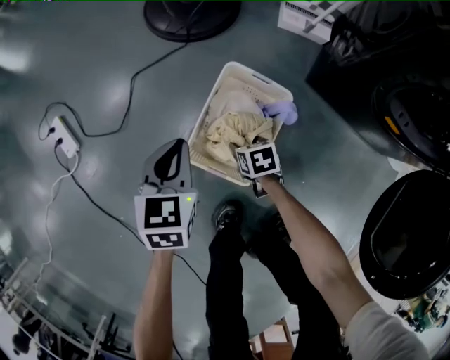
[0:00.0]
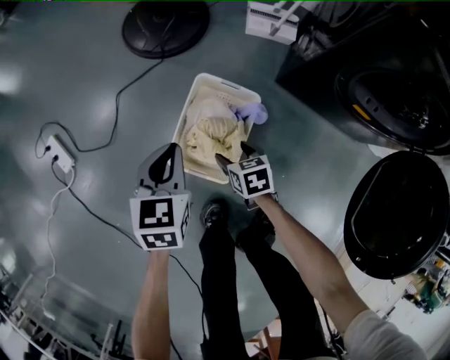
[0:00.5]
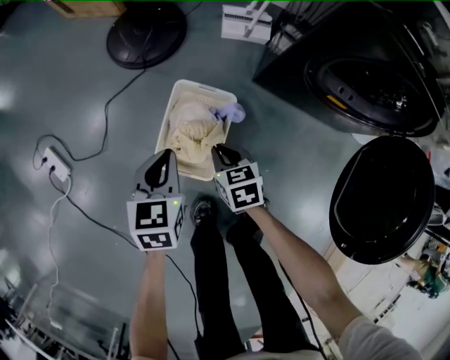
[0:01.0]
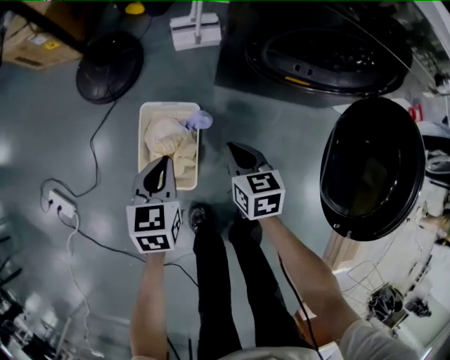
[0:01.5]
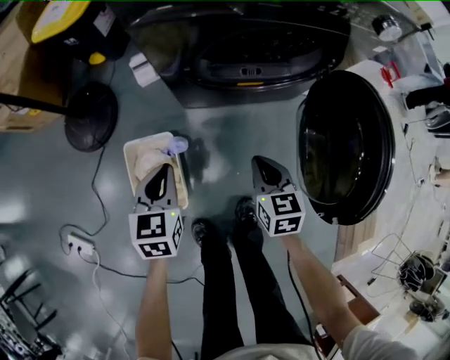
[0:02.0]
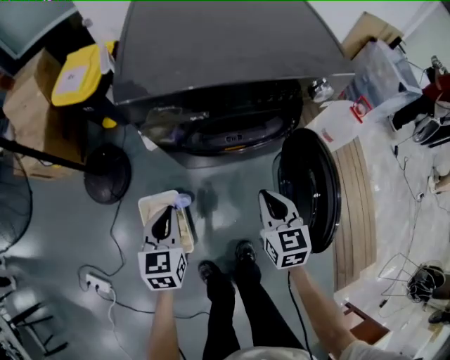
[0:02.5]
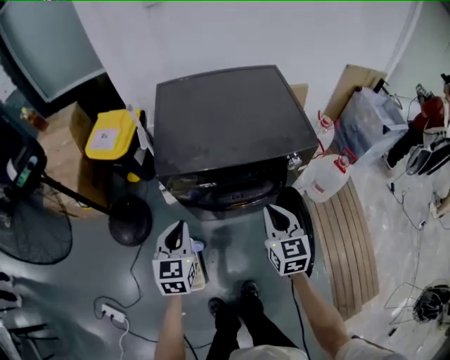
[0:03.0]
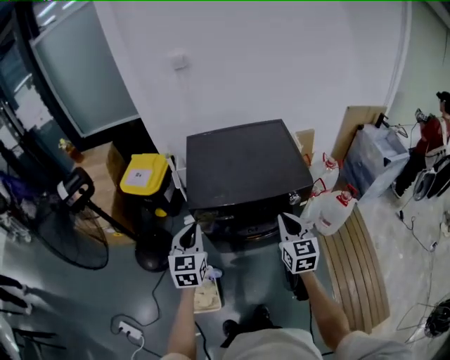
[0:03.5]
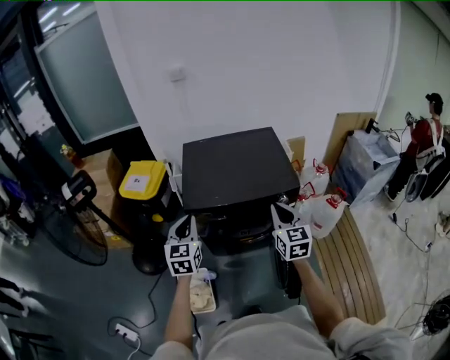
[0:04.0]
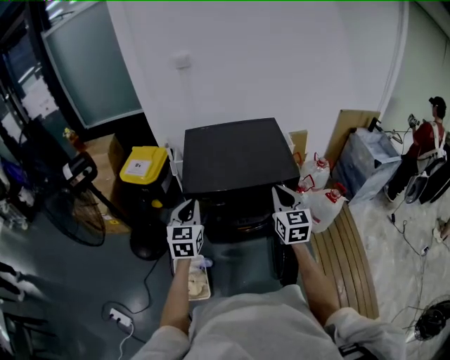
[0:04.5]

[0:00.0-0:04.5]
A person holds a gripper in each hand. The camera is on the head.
0:00.0 to 0:02.0: The right gripper shifts by roughly 50 cm, and turns by approximately 50 degrees. The left gripper ends up roughly 40 cm from where it was, and turns by some 30 degrees.
0:02.0 to 0:04.5: Both grippers move upward, some 60 cm. The right gripper tilts its fingers some 30 degrees upward. Meanwhile the left gripper rotates some 30 degrees.

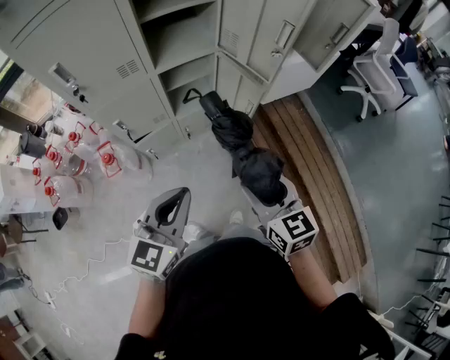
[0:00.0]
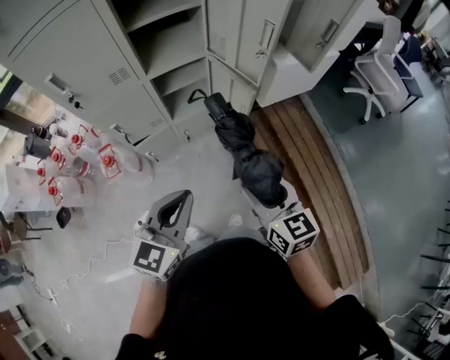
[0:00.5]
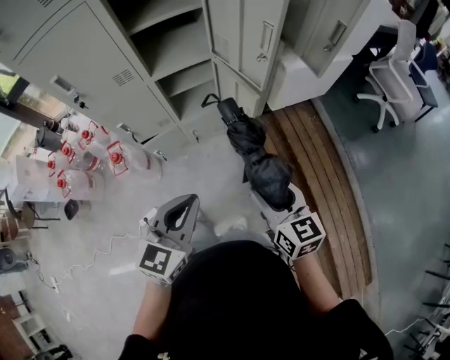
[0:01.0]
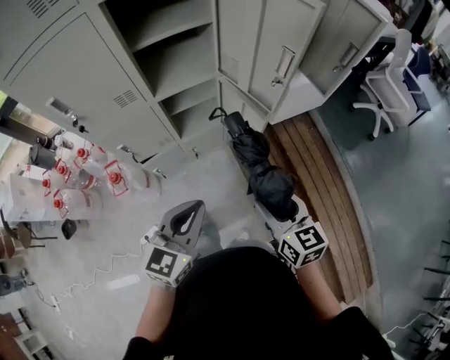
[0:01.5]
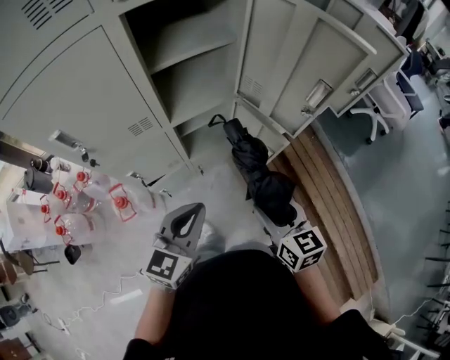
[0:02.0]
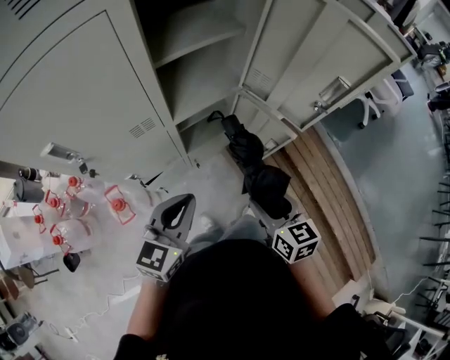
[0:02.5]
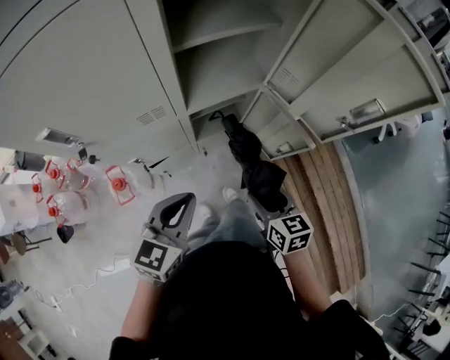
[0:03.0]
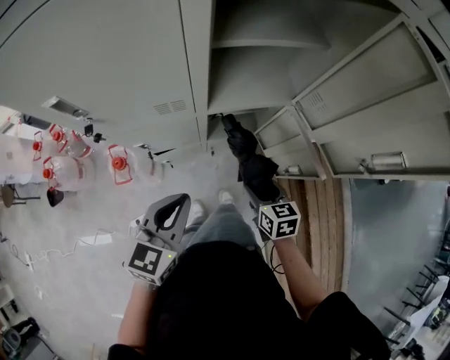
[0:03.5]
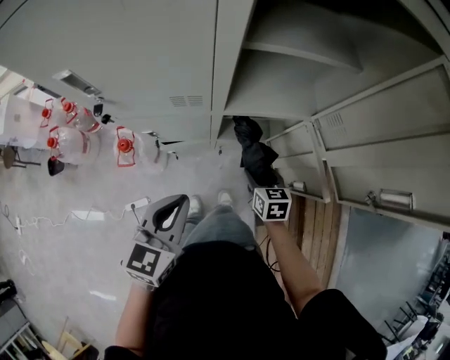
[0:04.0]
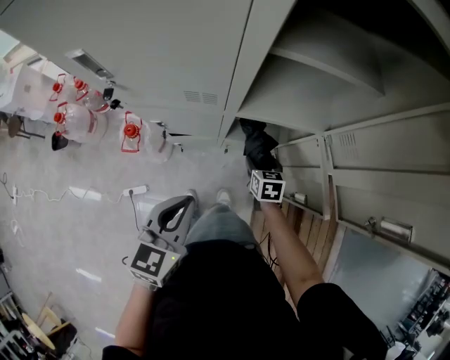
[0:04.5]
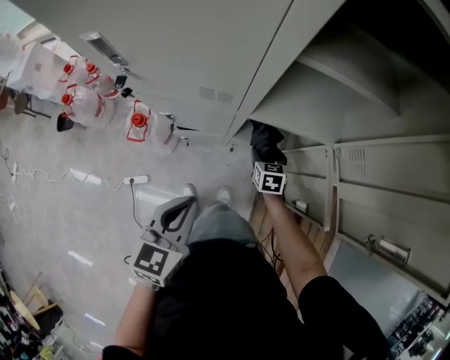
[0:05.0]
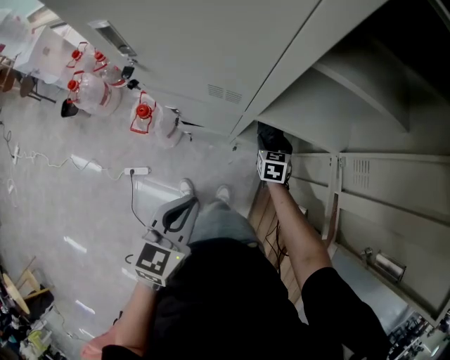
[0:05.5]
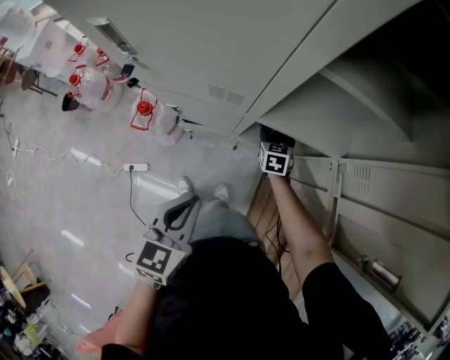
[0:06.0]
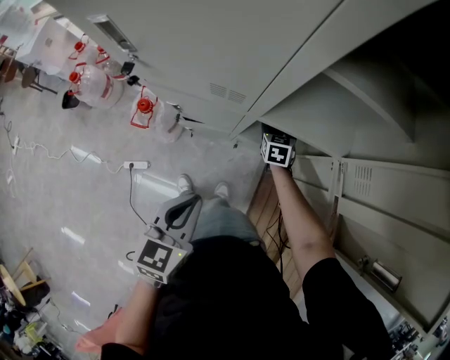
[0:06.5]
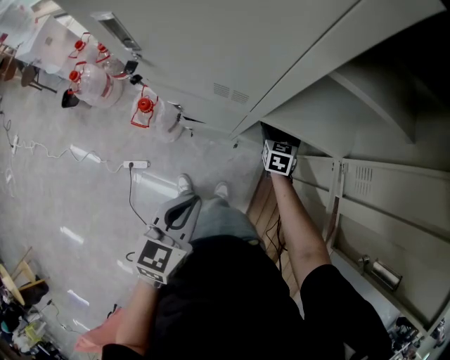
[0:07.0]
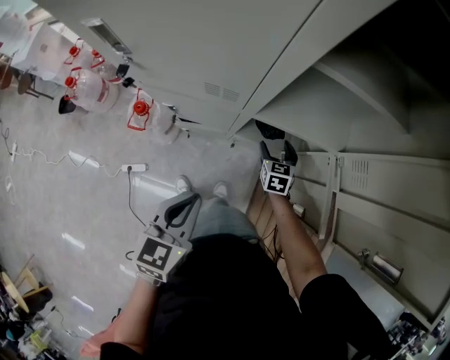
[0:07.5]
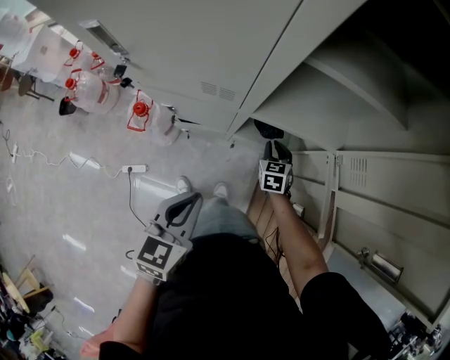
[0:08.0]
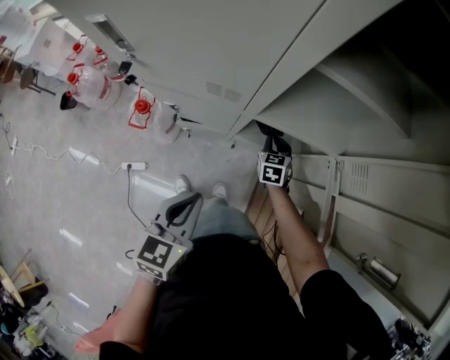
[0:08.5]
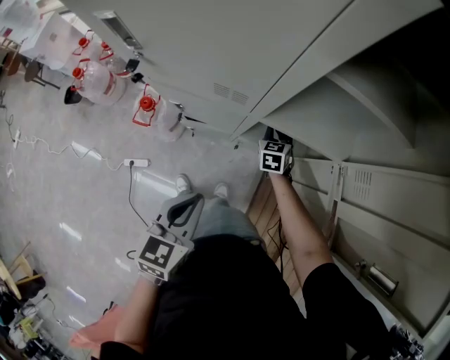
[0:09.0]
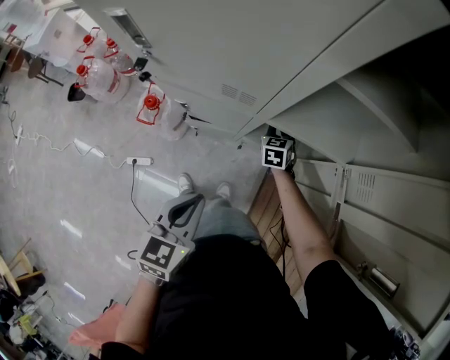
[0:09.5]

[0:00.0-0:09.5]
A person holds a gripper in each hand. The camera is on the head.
0:00.0 to 0:02.0: Both grippers travel together forward, approximately 15 cm.
0:02.0 to 0:04.0: The left gripper ends up about 15 cm from where it was, and swivels some 30 degrees; the right gripper heads downward, covering about 25 cm, and turns by approximately 30 degrees.
0:04.0 to 0:05.5: The right gripper moves forward and downward, roughly 15 cm.
0:05.5 to 0:07.5: The right gripper moves about 5 cm forward and comes back.
0:07.5 to 0:09.5: The right gripper goes approximately 10 cm forward and to the left, and closes its fingers.

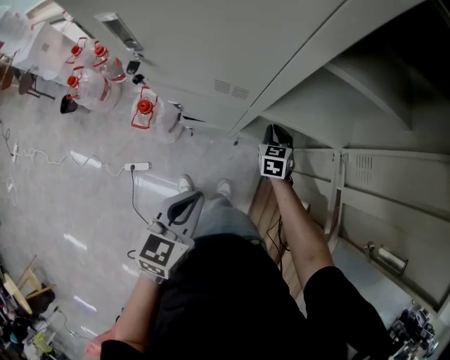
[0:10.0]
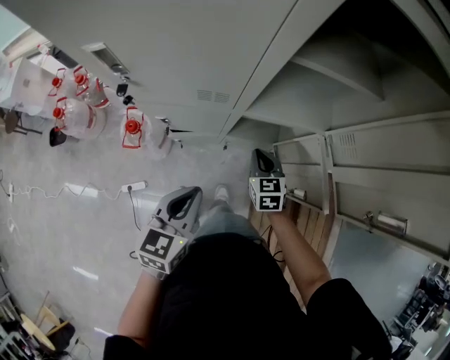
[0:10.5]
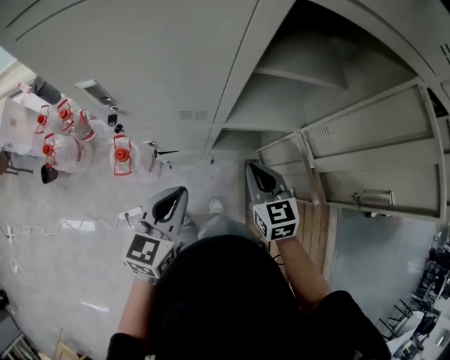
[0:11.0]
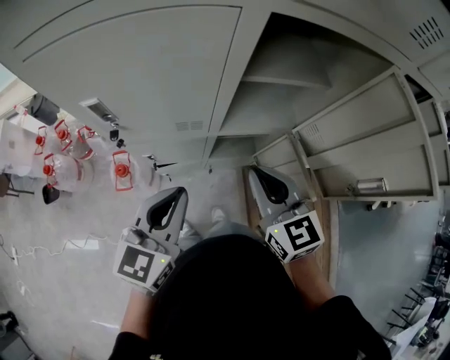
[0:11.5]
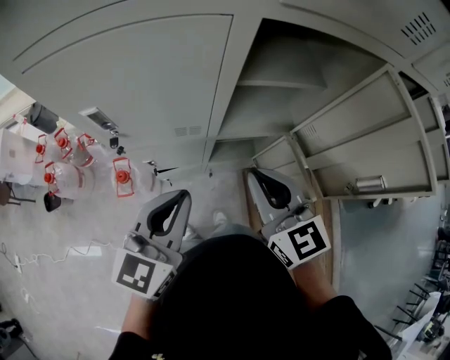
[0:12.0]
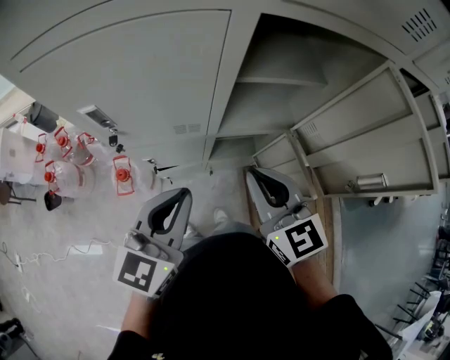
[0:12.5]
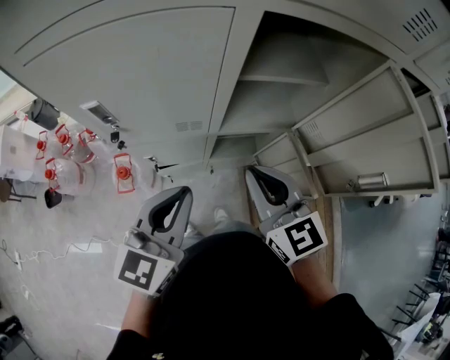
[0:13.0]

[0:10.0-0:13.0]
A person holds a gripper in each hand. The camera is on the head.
0:10.0 to 0:11.5: The right gripper goes roughly 40 cm upward and backward, and turns by some 20 degrees. Meanwhile the left gripper goes roughly 15 cm upward, and swivels roughly 20 degrees.
0:11.5 to 0:13.0: There are only small adjustments of the grippers.

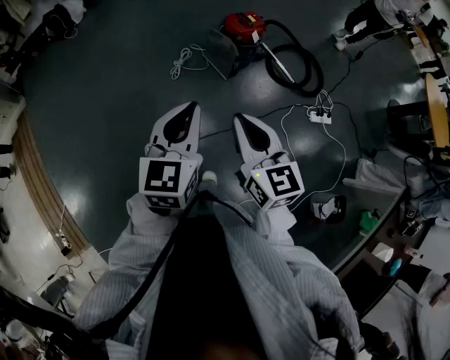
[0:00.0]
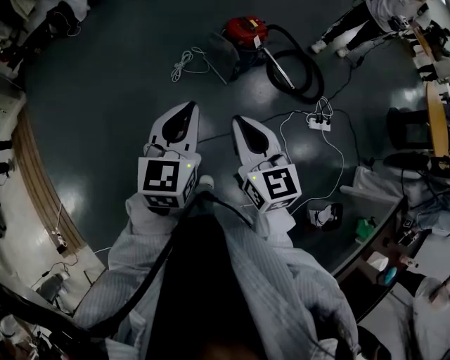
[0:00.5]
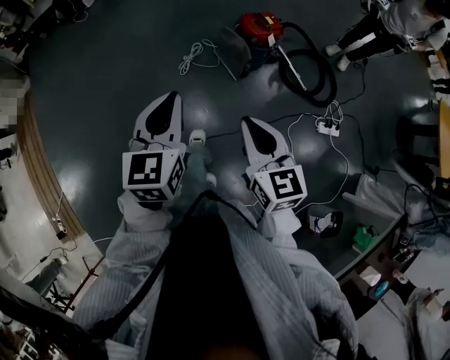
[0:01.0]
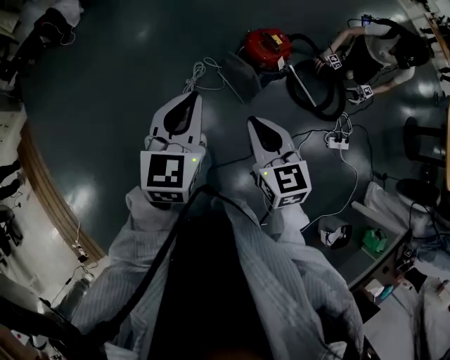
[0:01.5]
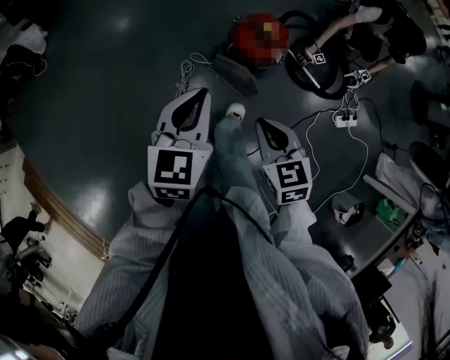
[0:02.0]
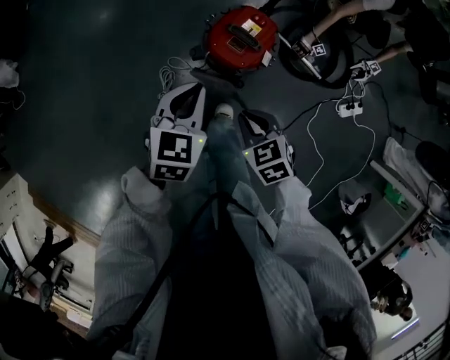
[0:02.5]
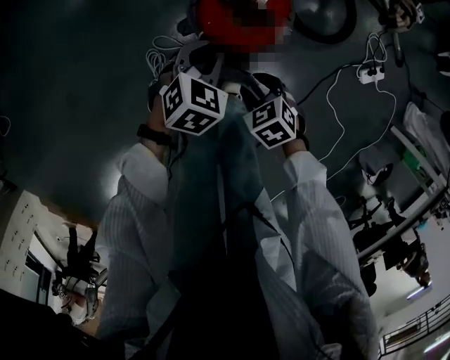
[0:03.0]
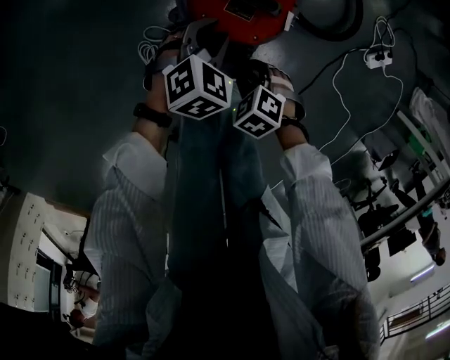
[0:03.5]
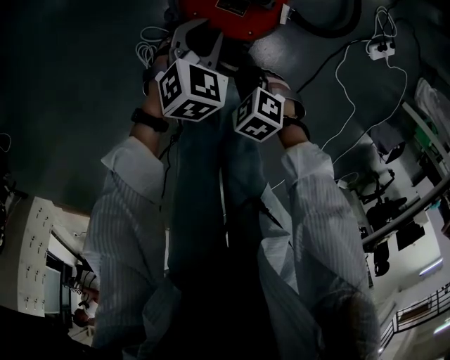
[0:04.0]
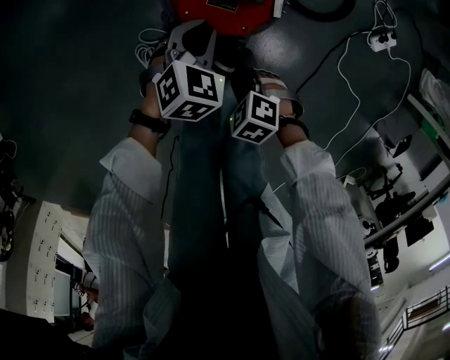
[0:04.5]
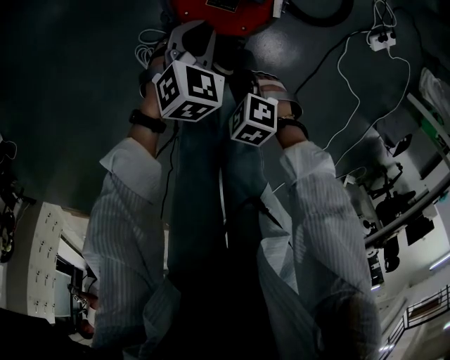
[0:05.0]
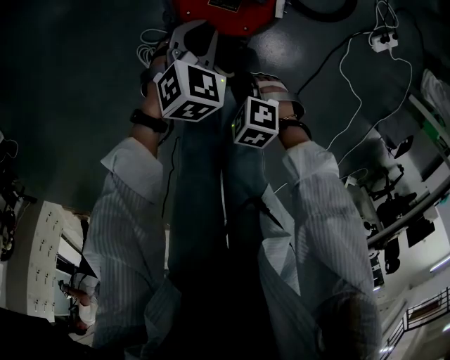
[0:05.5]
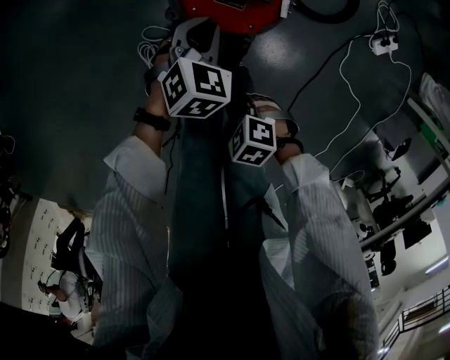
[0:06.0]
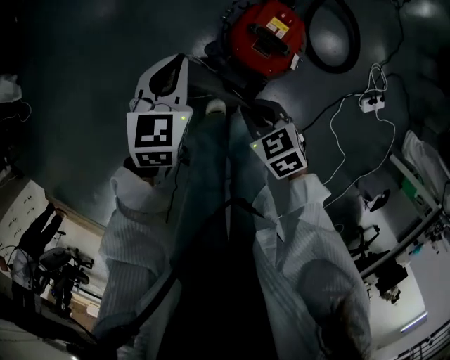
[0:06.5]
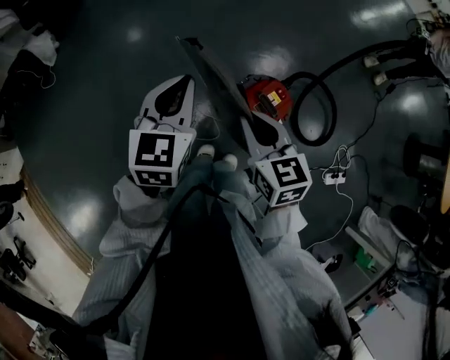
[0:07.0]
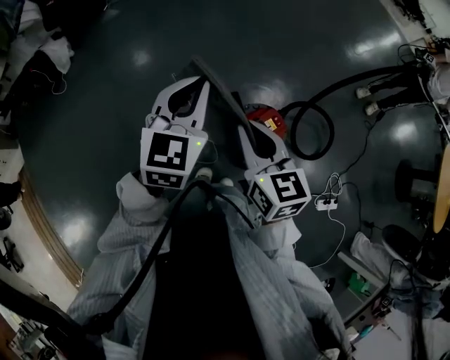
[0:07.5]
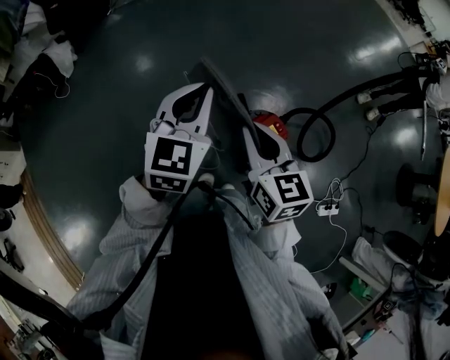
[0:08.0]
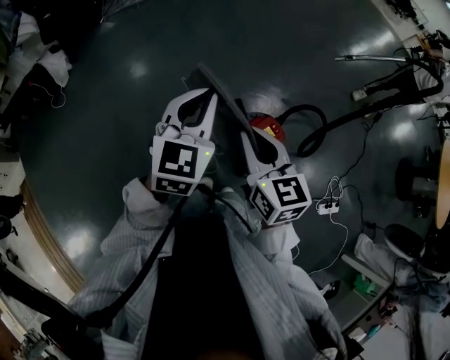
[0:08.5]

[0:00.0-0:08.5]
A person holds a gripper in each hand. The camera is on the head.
0:00.0 to 0:02.0: The pair of grippers is taken forward, some 50 cm. The right gripper goes some 20 cm downward, and swivels roughly 30 degrees.
0:02.0 to 0:04.0: The grippers both shift downward by roughly 50 cm. The right gripper points its fingers about 40 degrees further downward, and opens and closes again, while the left gripper swivels roughly 50 degrees, and opens its fingers.
0:04.0 to 0:06.5: Both grippers travel together upward, about 20 cm. The left gripper changes its angle by about 40 degrees, and closes; the right gripper swivels some 30 degrees.
0:06.5 to 0:08.5: Both grippers travel together upward, roughly 40 cm. The left gripper swivels some 30 degrees; the right gripper tilts its fingers roughly 40 degrees upward.
